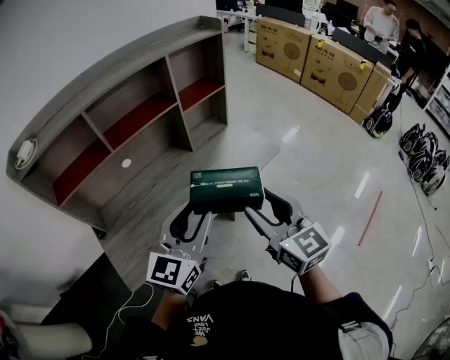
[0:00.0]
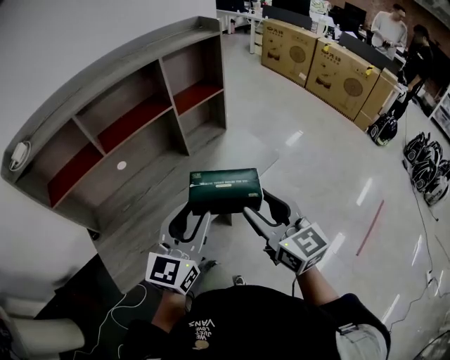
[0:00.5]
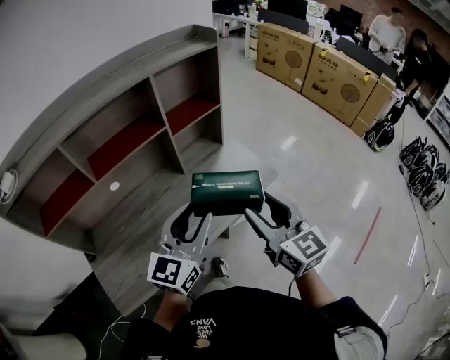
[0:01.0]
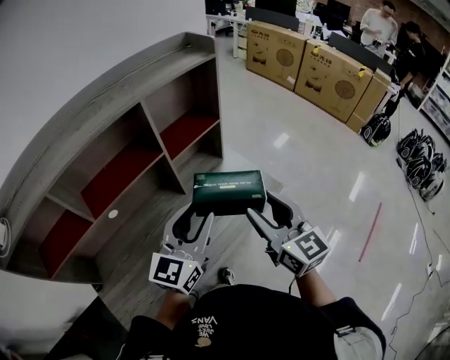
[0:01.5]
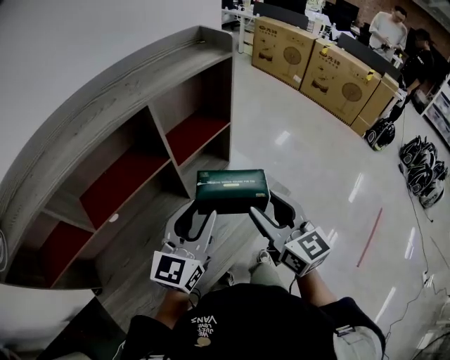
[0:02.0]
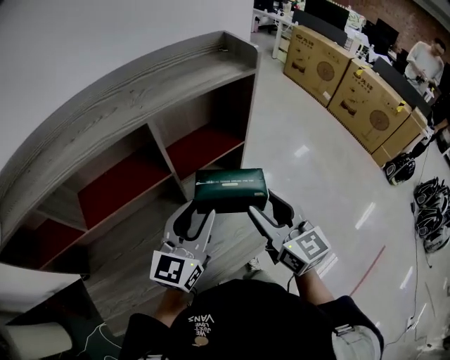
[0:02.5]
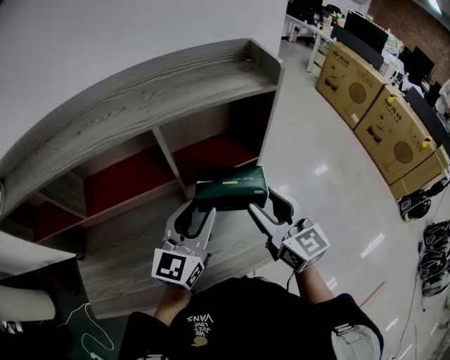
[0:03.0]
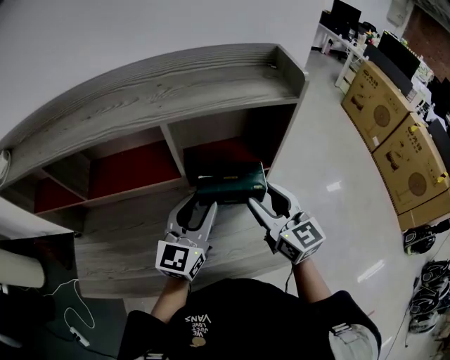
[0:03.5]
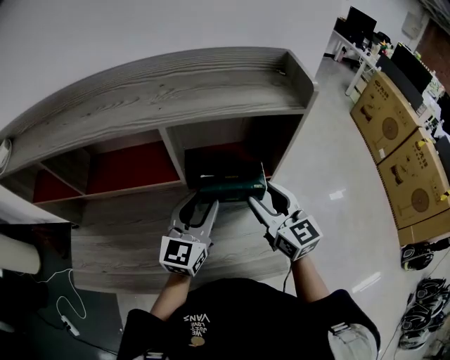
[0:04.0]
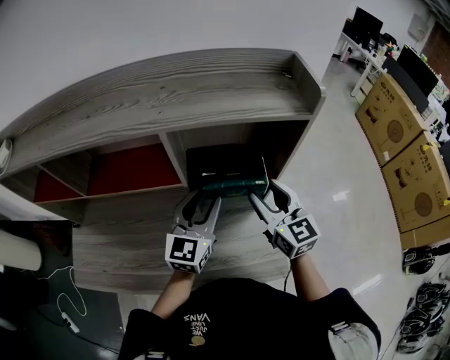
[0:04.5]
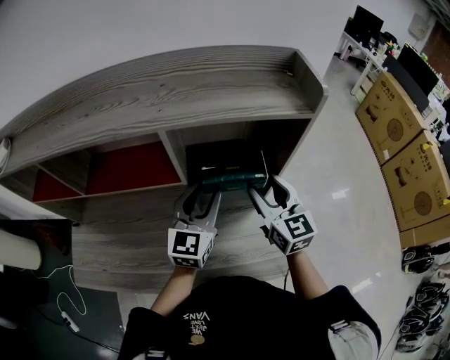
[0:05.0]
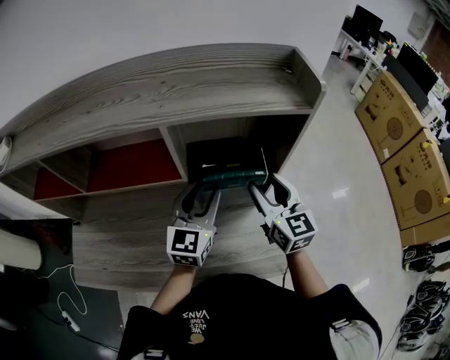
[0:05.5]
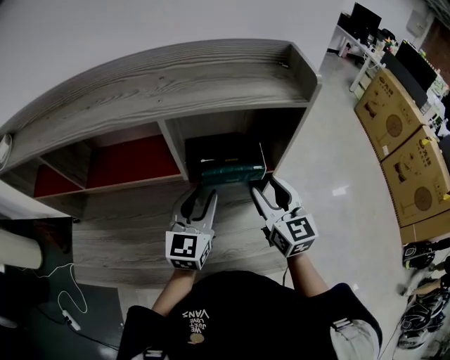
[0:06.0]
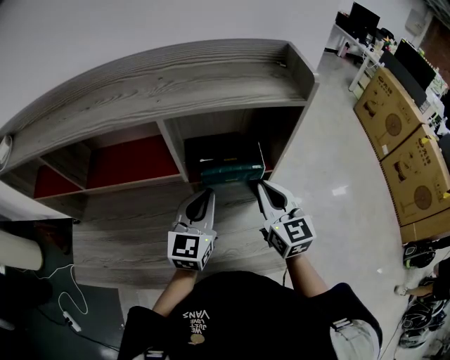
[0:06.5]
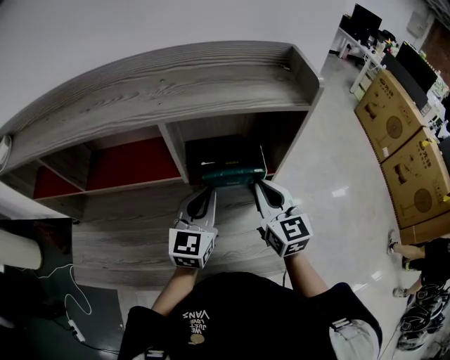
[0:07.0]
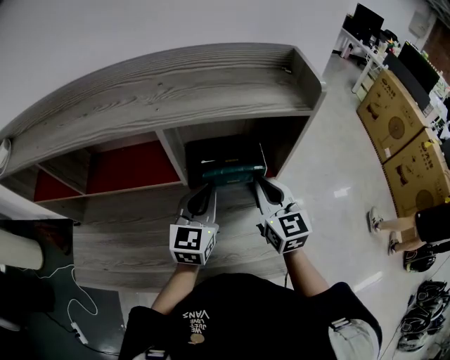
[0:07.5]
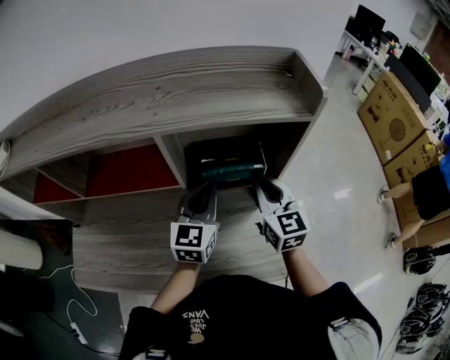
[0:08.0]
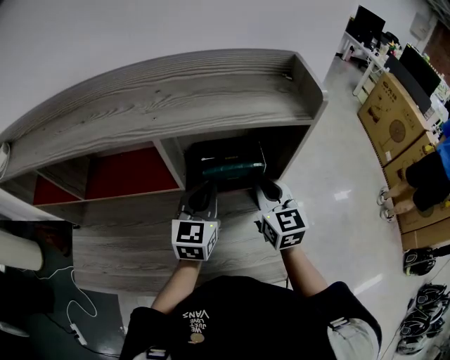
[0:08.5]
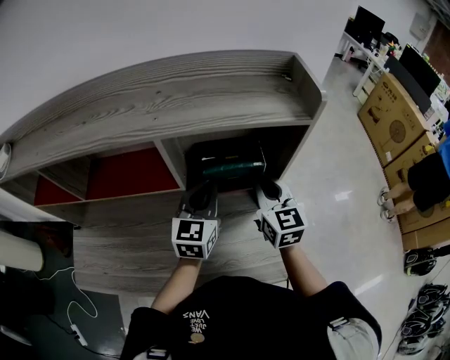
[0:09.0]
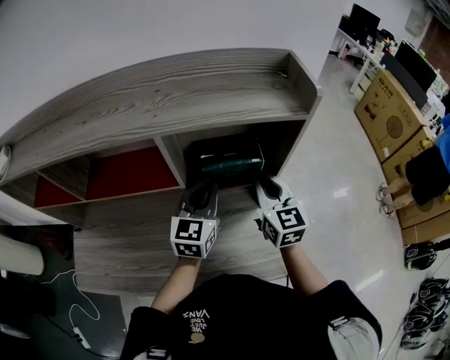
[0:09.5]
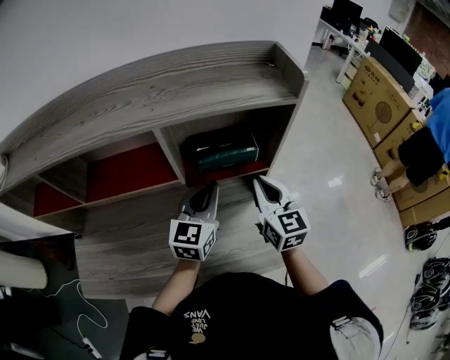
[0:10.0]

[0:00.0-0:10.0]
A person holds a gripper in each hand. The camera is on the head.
0:00.0 to 0:02.0: Both grippers move forward, about 25 cm.
0:02.0 to 0:04.0: The left gripper moves some 15 cm, and swivels roughly 40 degrees. Meanwhile the right gripper changes place by approximately 25 cm, and swivels about 40 degrees.
0:04.0 to 0:06.0: The grippers make only small movements.
0:06.0 to 0:08.0: The left gripper shifts by about 5 cm, and closes. Meanwhile the right gripper goes approximately 5 cm forward, and closes.
0:08.0 to 0:10.0: The grippers make only small movements.

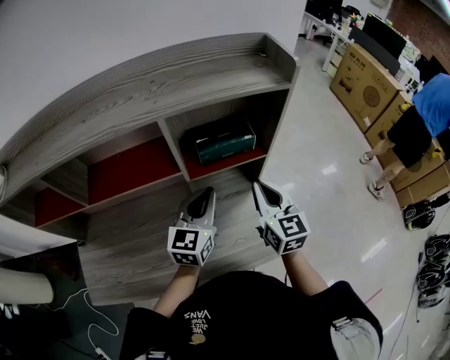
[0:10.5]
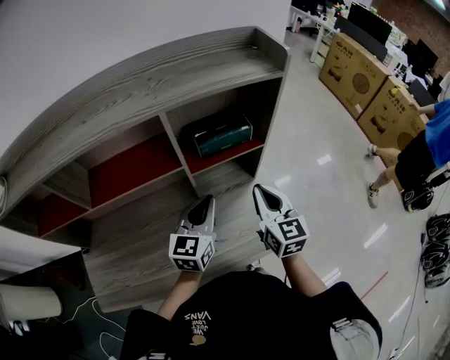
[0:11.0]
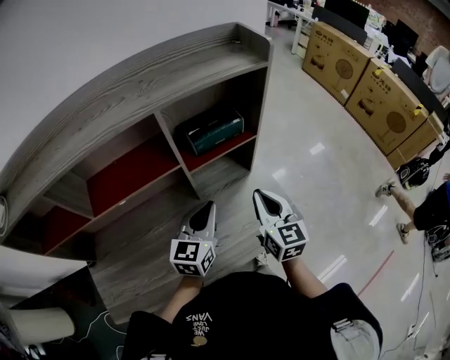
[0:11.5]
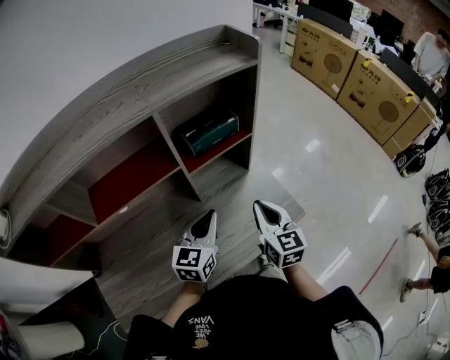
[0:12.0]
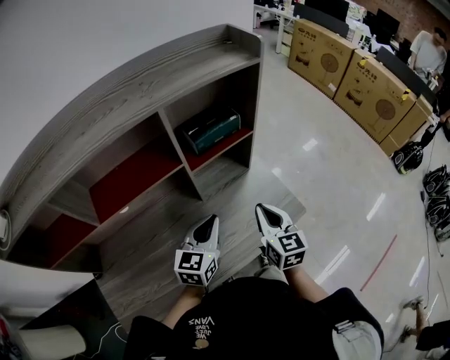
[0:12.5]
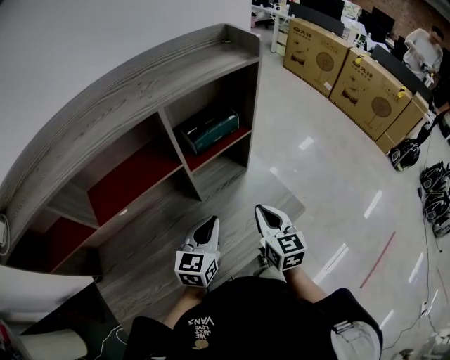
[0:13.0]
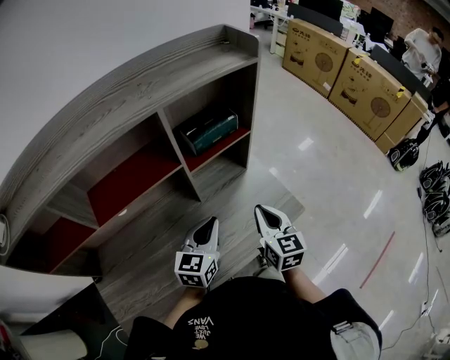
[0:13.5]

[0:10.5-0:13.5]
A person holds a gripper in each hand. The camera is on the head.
0:10.5 to 0:12.0: The left gripper shifts roughly 10 cm backward. Meanwhile the right gripper goes some 15 cm backward and downward.
0:12.0 to 0:13.5: The grippers make only small movements.

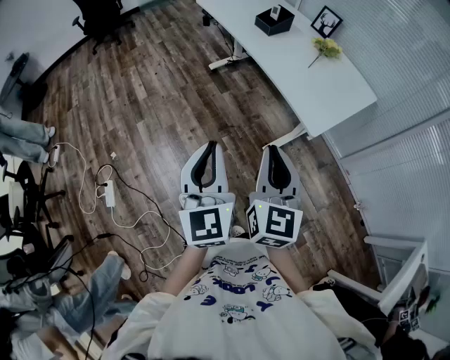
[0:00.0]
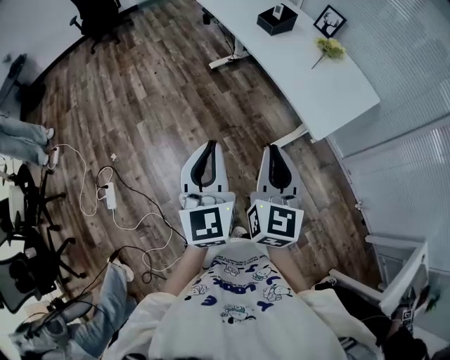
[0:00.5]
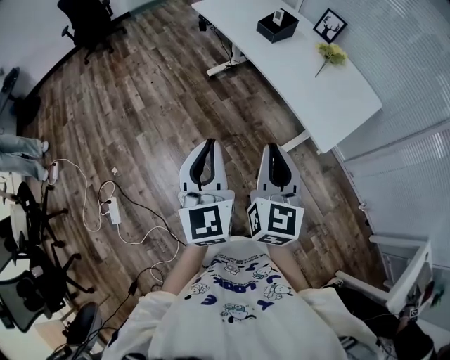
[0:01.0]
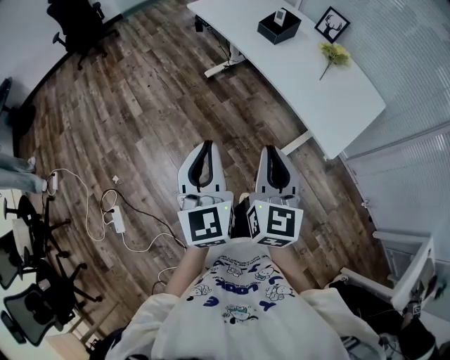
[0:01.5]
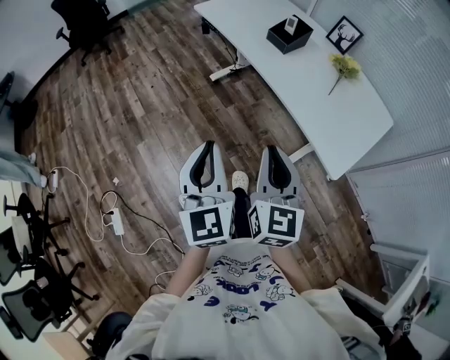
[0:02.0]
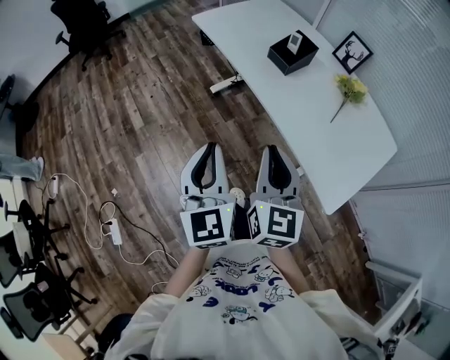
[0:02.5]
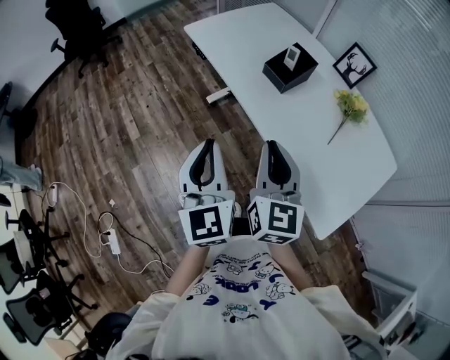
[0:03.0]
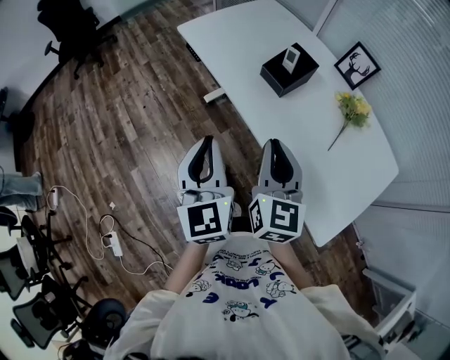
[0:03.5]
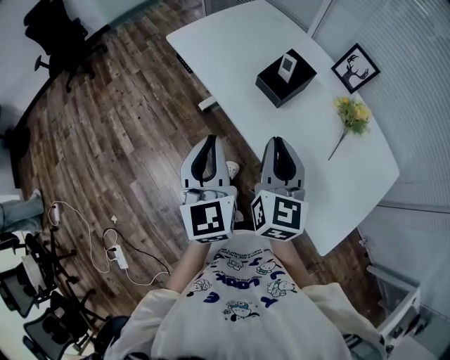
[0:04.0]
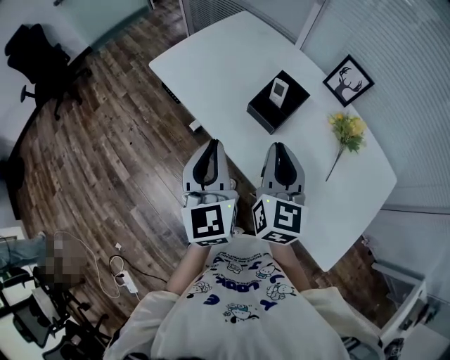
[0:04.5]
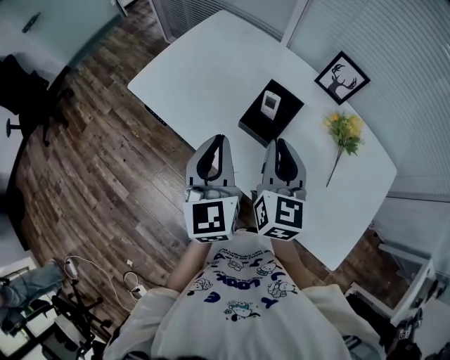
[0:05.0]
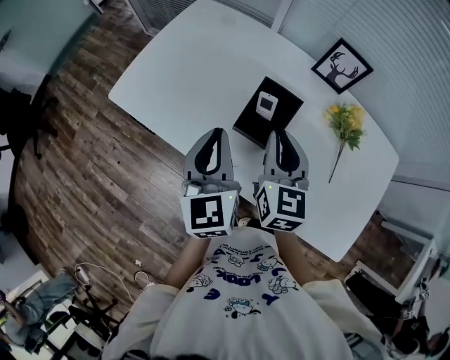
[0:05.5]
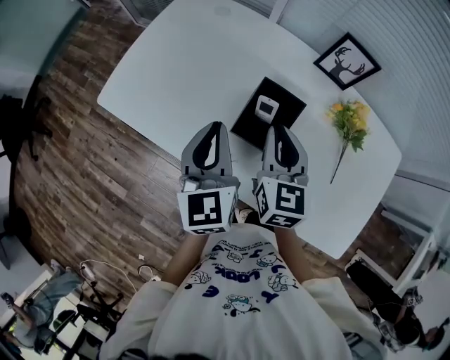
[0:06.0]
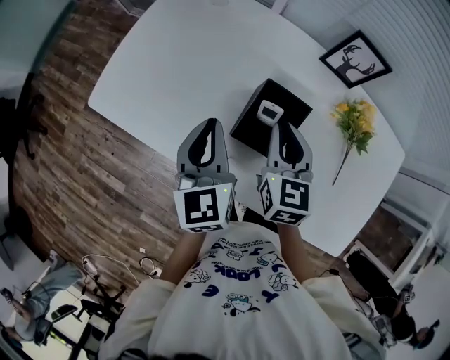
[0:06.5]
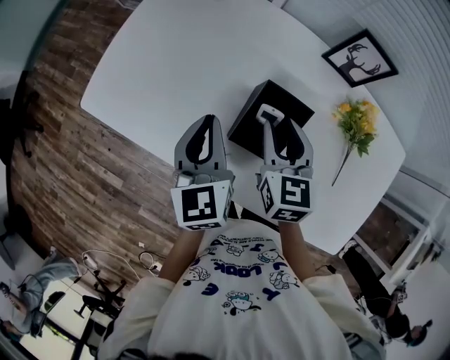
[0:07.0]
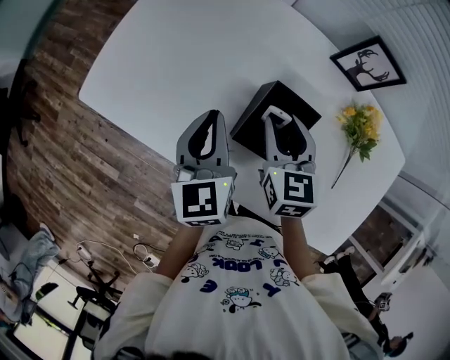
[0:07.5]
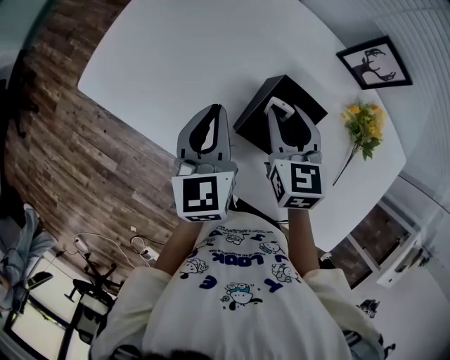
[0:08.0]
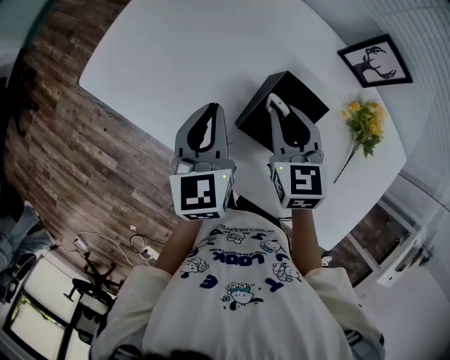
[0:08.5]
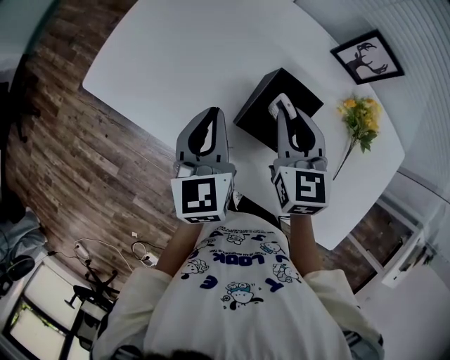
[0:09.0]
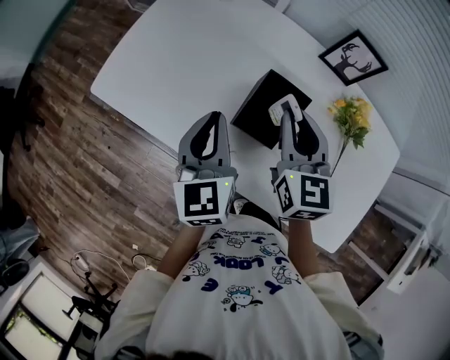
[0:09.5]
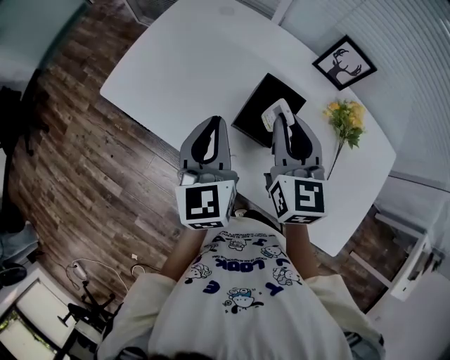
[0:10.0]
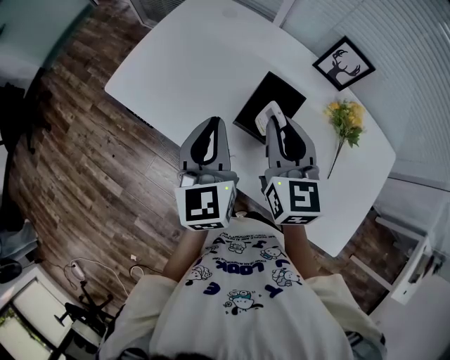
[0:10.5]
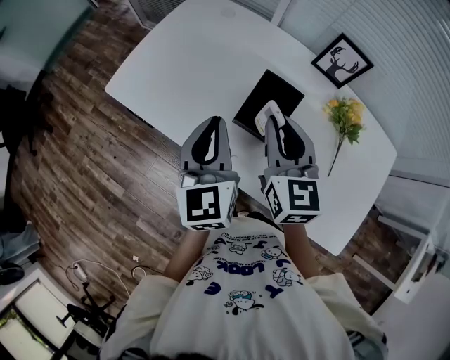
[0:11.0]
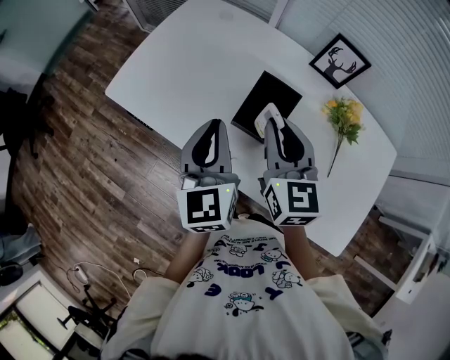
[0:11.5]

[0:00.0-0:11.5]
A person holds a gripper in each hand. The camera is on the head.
0:00.0 to 0:02.0: Both grippers travel together forward, about 25 cm.
0:02.0 to 0:04.0: The two grippers go approximately 35 cm forward.
0:04.0 to 0:06.0: The grippers both shift forward by some 30 cm. The left gripper changes its angle by about 30 degrees; the right gripper swivels about 20 degrees.
0:06.0 to 0:07.5: Both grippers travel together downward and forward, approximately 10 cm. The right gripper opens up.
0:07.5 to 0:09.5: The left gripper travels backward by some 5 cm; the right gripper heads upward, covering roughly 10 cm.
0:09.5 to 0:11.5: The left gripper travels backward and upward by roughly 10 cm; the right gripper heads backward, covering about 5 cm.

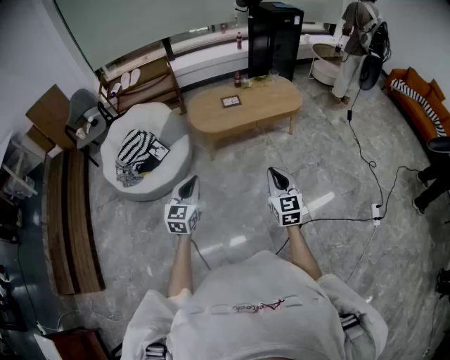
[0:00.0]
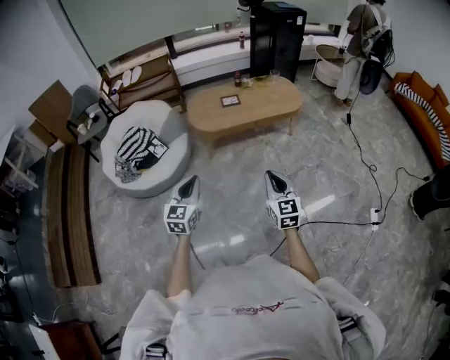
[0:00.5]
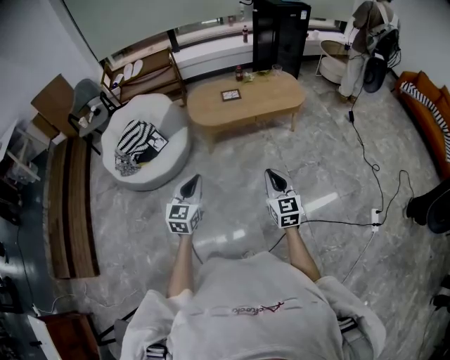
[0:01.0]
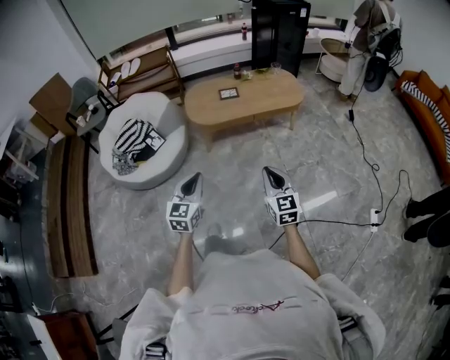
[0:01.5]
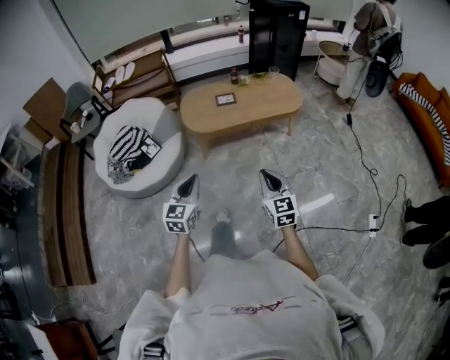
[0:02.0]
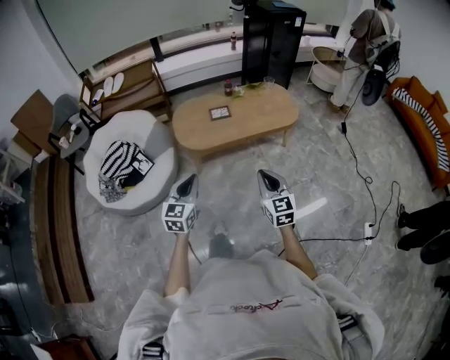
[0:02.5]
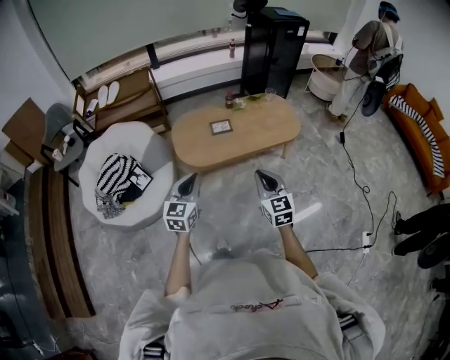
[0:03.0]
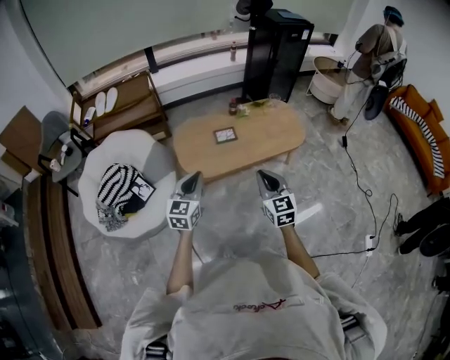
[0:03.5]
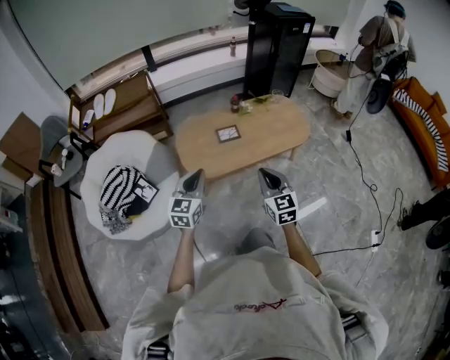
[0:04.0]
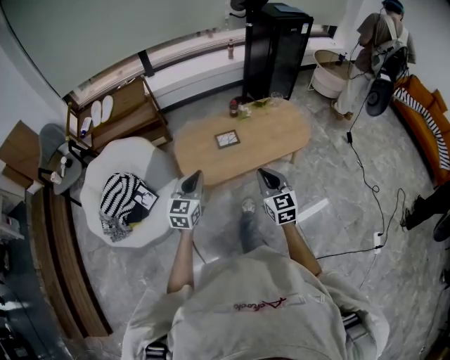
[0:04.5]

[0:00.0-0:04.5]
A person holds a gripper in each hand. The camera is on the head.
0:00.0 to 0:02.0: The right gripper moves forward, to the right and downward, some 10 cm. The left gripper goes approximately 15 cm to the right and forward.
0:02.0 to 0:04.5: The pair of grippers is taken forward, approximately 40 cm.
